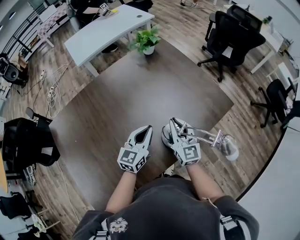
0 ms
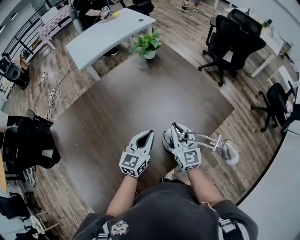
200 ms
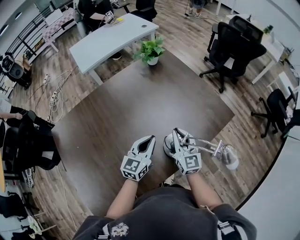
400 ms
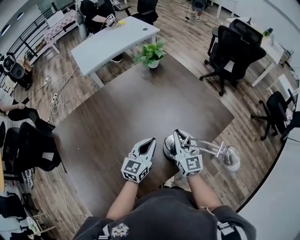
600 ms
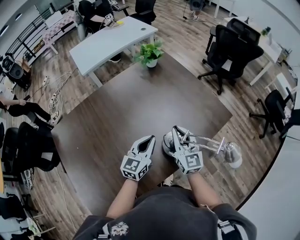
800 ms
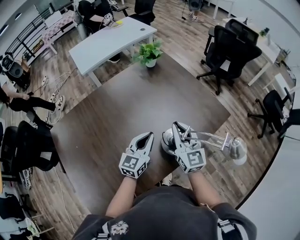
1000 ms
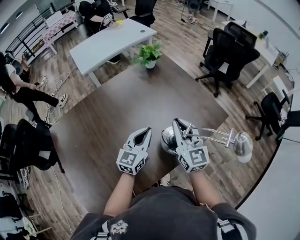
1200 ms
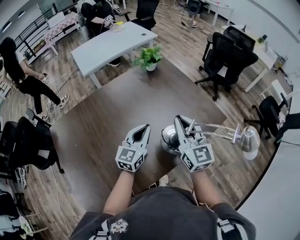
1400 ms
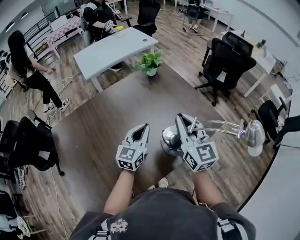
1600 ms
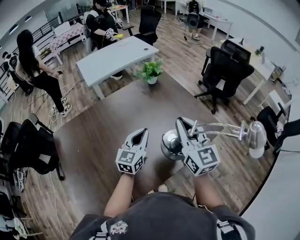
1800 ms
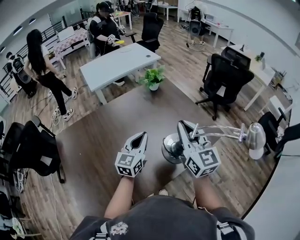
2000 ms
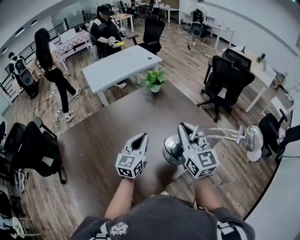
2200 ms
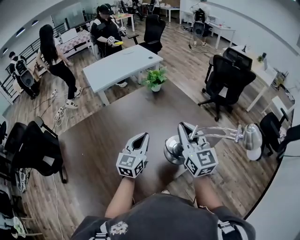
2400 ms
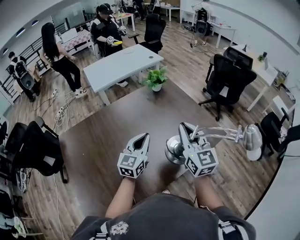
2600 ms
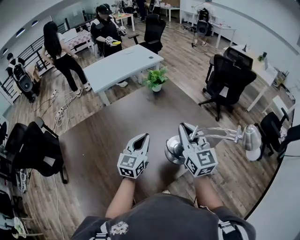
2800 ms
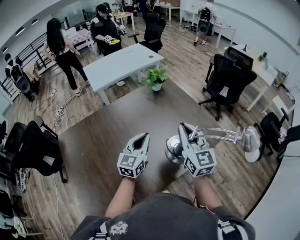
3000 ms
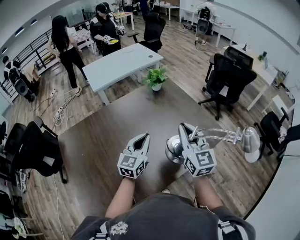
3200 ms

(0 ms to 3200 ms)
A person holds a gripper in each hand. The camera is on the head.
0 ms - 1600 ms: The left gripper heads upward, covering some 10 cm; the right gripper is displaced upward by about 20 cm.
1600 ms - 3200 ms: There are only small adjustments of the grippers.

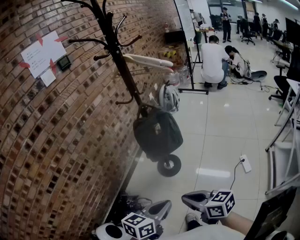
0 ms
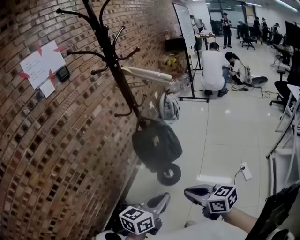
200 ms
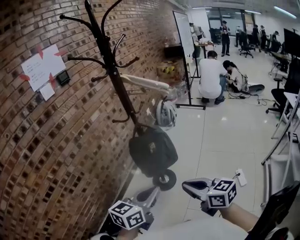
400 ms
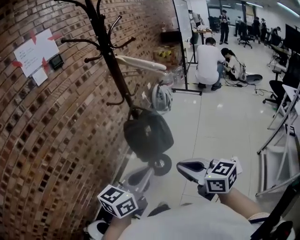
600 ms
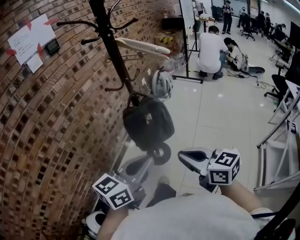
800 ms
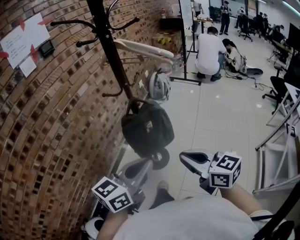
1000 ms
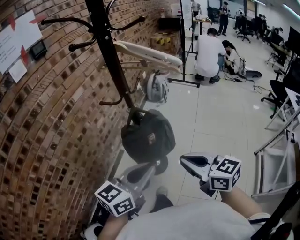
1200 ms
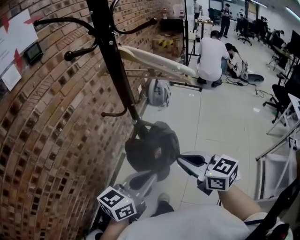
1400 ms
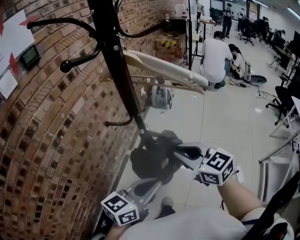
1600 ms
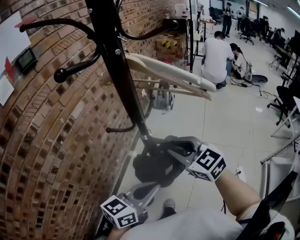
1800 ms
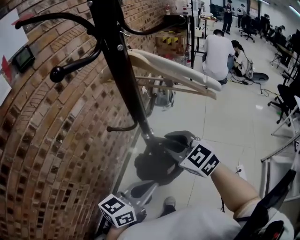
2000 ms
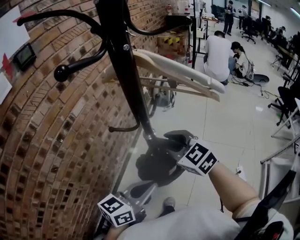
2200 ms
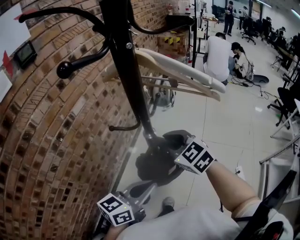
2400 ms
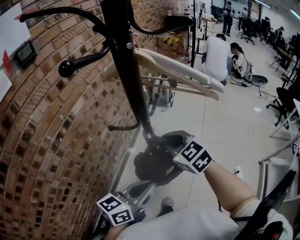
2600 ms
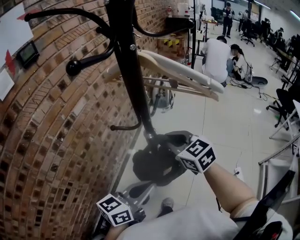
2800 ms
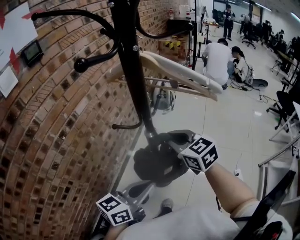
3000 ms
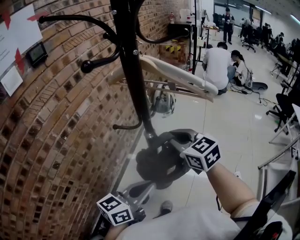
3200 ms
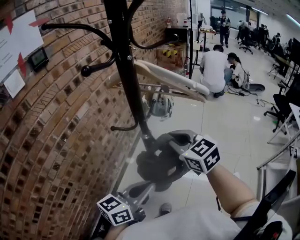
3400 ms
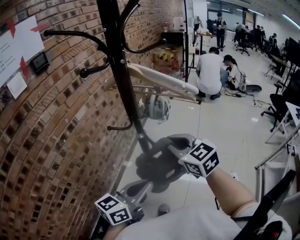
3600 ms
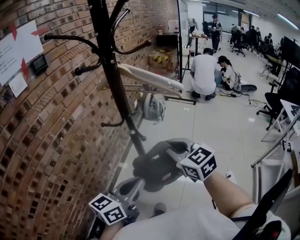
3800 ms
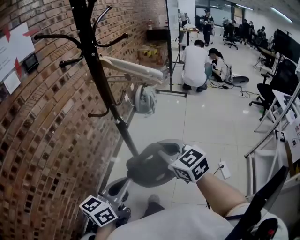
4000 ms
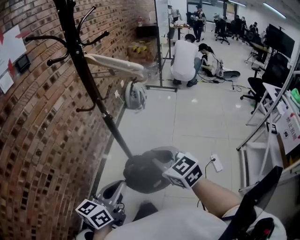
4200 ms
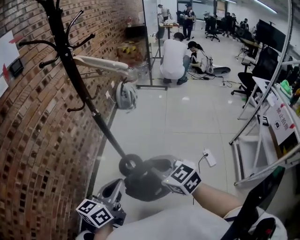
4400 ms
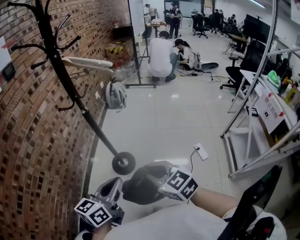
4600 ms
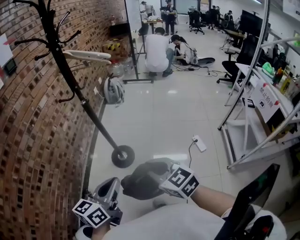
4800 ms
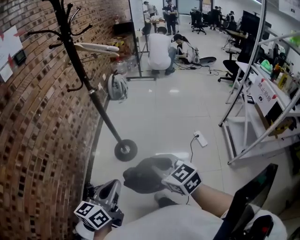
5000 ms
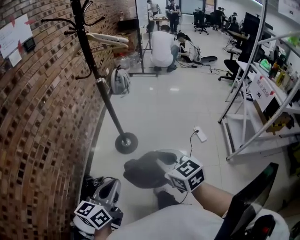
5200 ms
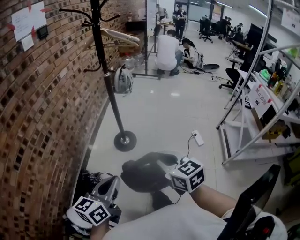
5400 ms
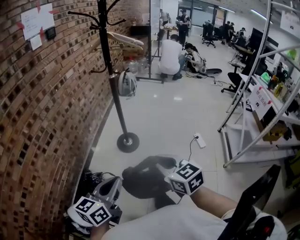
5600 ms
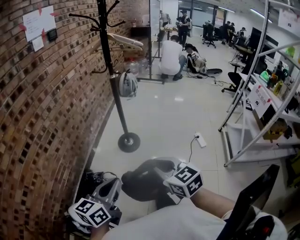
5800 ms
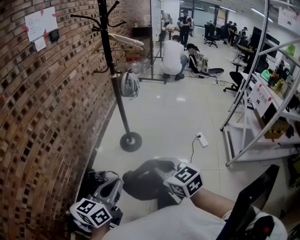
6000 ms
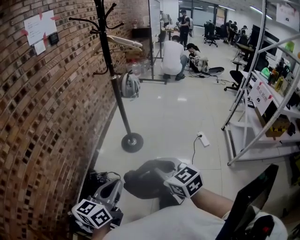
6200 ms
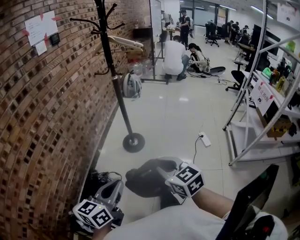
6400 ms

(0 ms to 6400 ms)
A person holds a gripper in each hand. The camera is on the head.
0 ms - 1600 ms: Both grippers move forward, some 35 cm. The right gripper swivels roughly 30 degrees.
1600 ms - 3200 ms: The right gripper is displaced forward by roughly 10 cm, and opens, then closes again.
3200 ms - 4800 ms: The right gripper moves backward, about 40 cm. Meanwhile the left gripper moves backward, some 25 cm.
4800 ms - 6400 ms: The left gripper is displaced backward and to the left by roughly 25 cm, while the right gripper is displaced backward by approximately 20 cm.

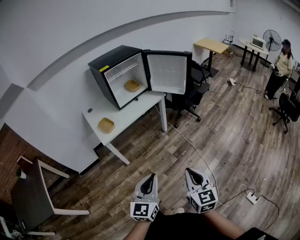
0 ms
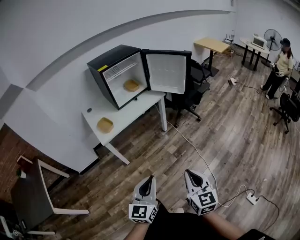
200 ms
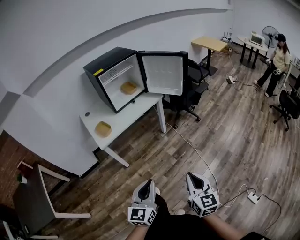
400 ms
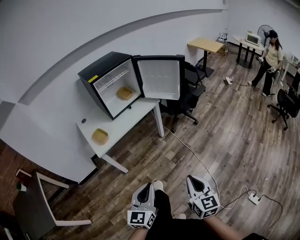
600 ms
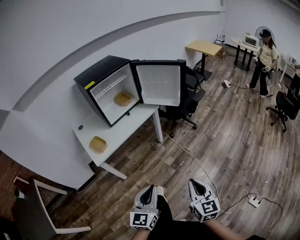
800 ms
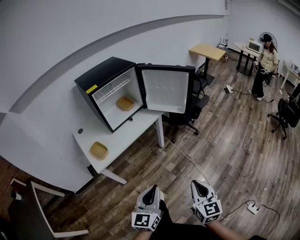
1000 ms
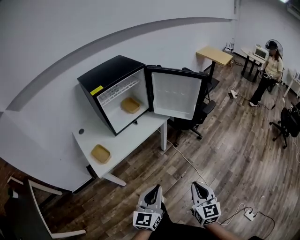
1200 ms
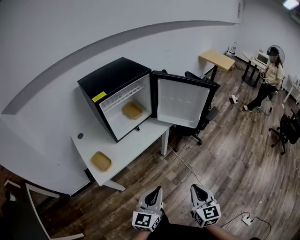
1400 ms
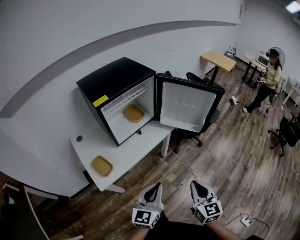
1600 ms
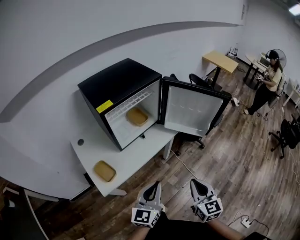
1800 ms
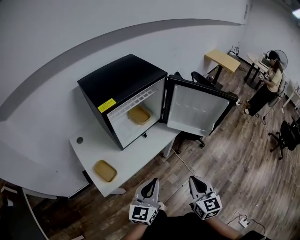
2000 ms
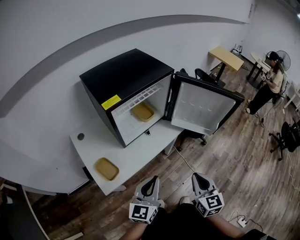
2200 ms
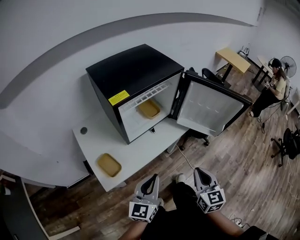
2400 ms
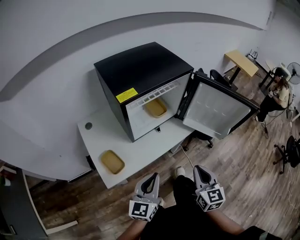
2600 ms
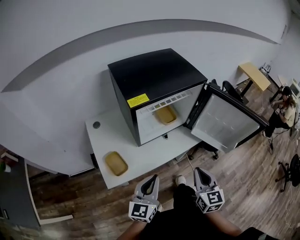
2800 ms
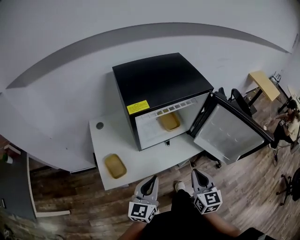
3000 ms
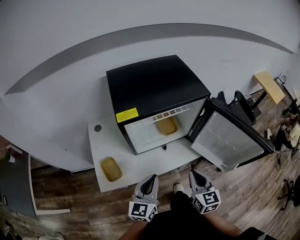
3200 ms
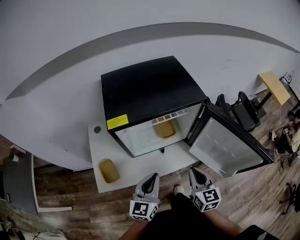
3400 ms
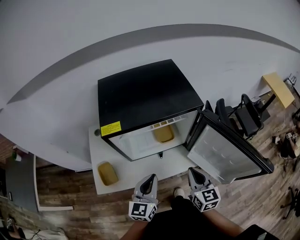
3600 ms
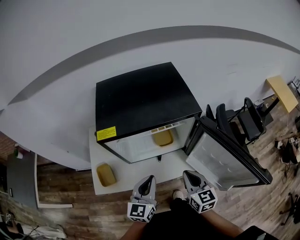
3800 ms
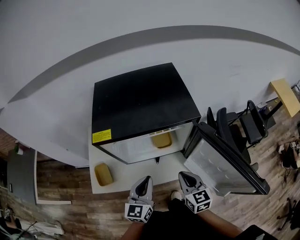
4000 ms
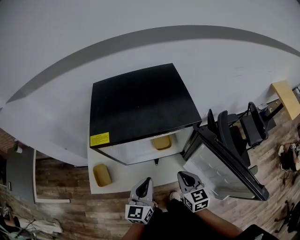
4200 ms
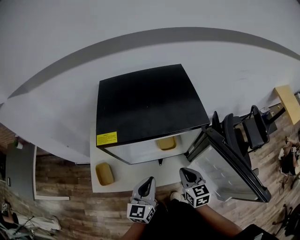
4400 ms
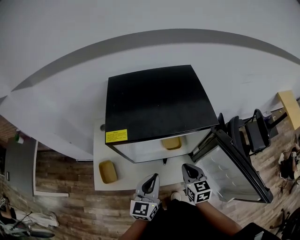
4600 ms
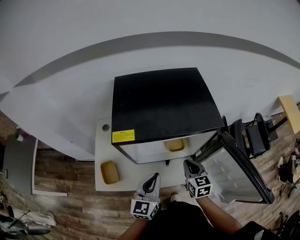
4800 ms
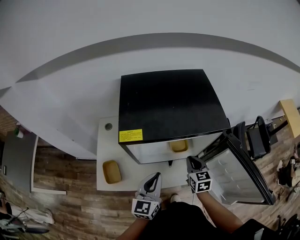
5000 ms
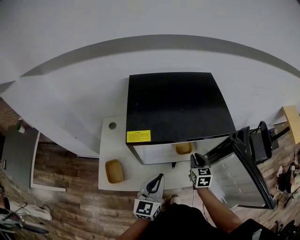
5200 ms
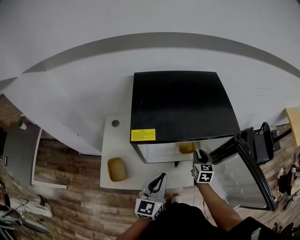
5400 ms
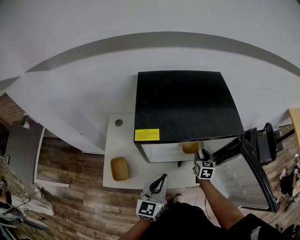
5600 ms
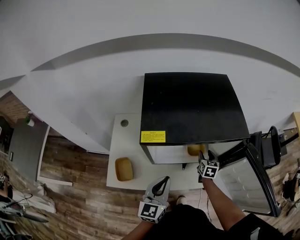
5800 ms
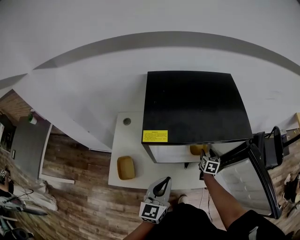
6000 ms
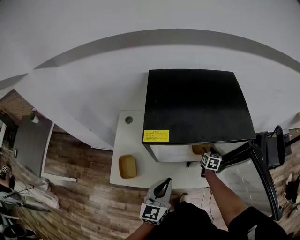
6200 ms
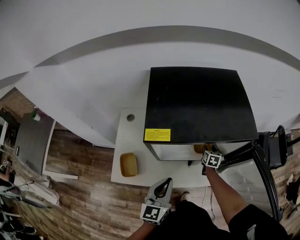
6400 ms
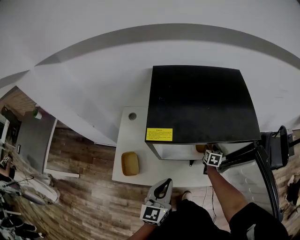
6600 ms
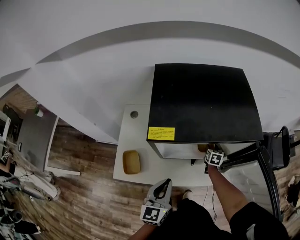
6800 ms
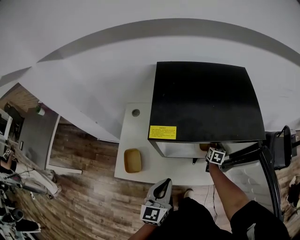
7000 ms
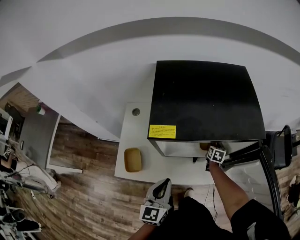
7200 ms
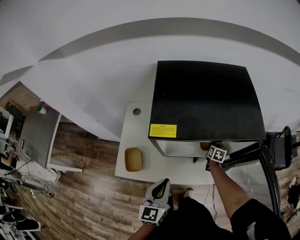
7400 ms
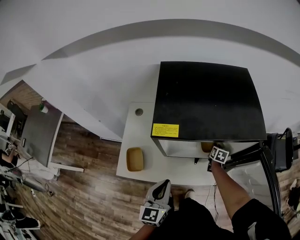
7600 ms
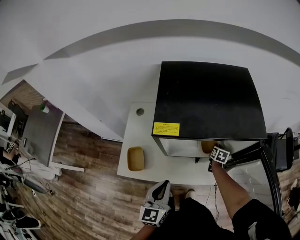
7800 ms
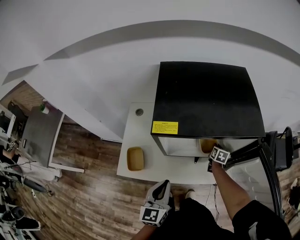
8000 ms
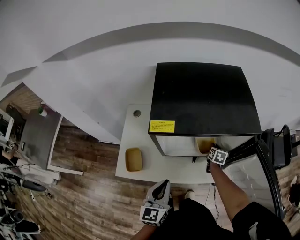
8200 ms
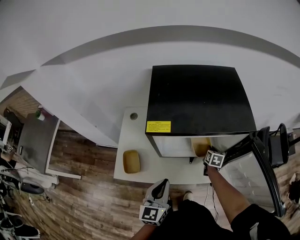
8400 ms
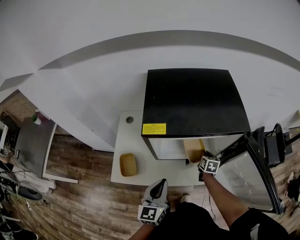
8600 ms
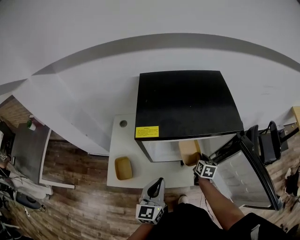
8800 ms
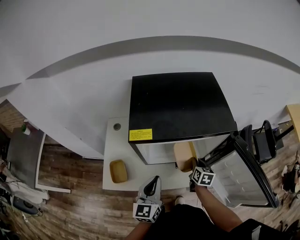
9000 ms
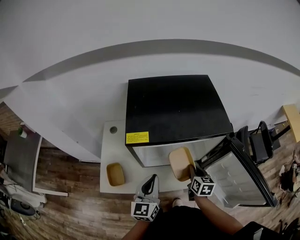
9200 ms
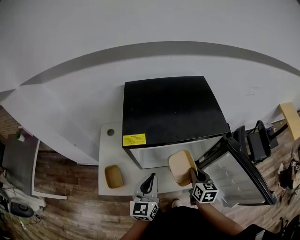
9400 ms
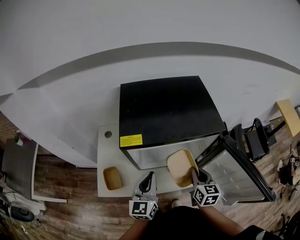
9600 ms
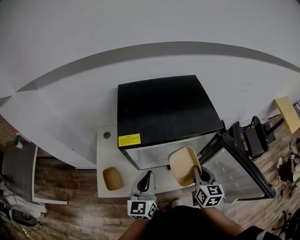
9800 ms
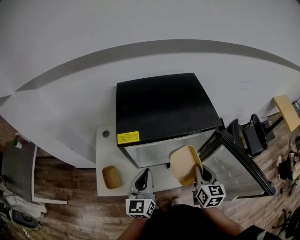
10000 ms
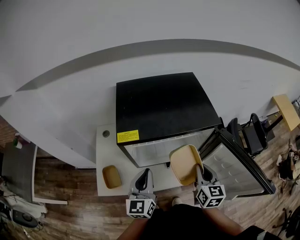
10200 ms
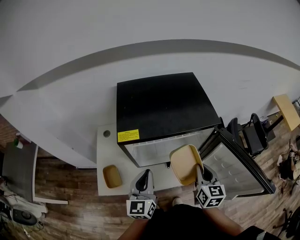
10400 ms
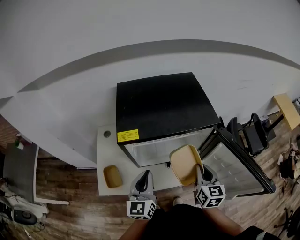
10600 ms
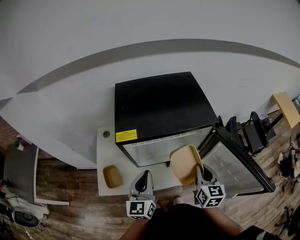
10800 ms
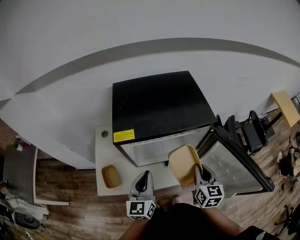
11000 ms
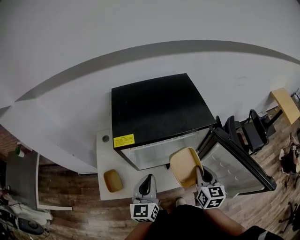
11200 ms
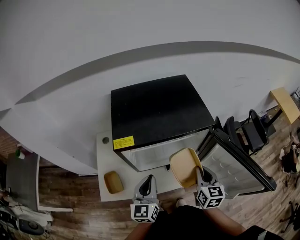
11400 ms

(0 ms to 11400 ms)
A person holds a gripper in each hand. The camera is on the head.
0 ms - 1400 ms: The two grippers go some 30 cm forward.
1400 ms - 2800 ms: Both grippers move forward and to the left, about 30 cm.
2800 ms - 4200 ms: The right gripper ends up some 25 cm from where it was, and turns by some 30 degrees; the left gripper ends up some 25 cm from where it was, and swivels roughly 20 degrees.
4200 ms - 5600 ms: The right gripper shifts approximately 20 cm forward and downward, and opens. The left gripper goes roughly 10 cm to the left.
5600 ms - 7200 ms: The right gripper is displaced downward and forward by approximately 15 cm.
7200 ms - 8600 ms: The right gripper shifts roughly 10 cm backward and upward, and closes.
8600 ms - 10000 ms: The left gripper travels forward and upward by some 10 cm. The right gripper heads upward and backward, covering about 25 cm, and rotates approximately 20 degrees.
10000 ms - 11400 ms: The grippers stay close to where they were, moving slightly.

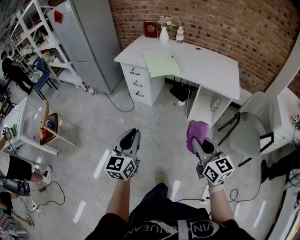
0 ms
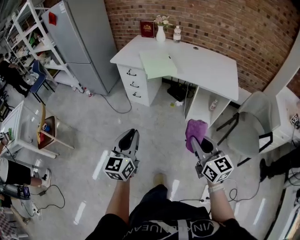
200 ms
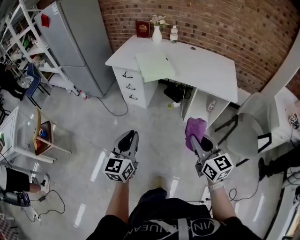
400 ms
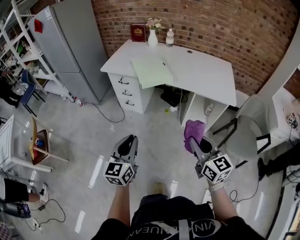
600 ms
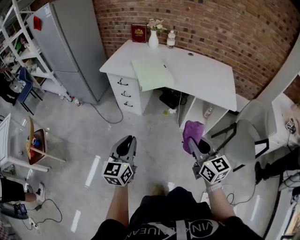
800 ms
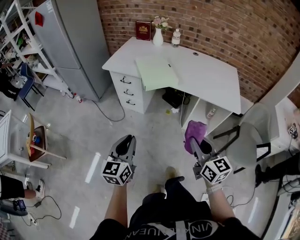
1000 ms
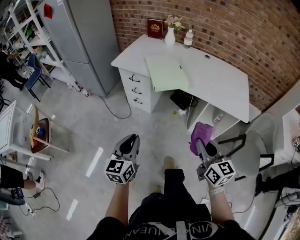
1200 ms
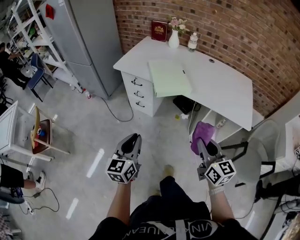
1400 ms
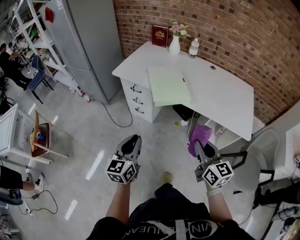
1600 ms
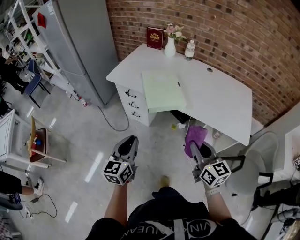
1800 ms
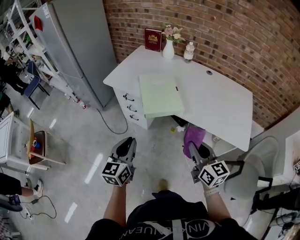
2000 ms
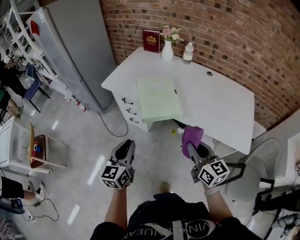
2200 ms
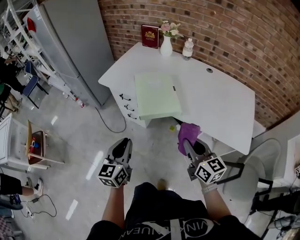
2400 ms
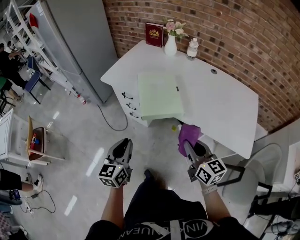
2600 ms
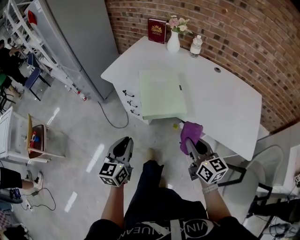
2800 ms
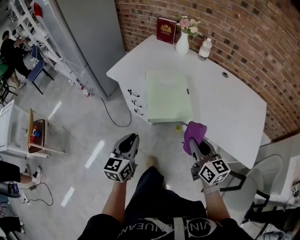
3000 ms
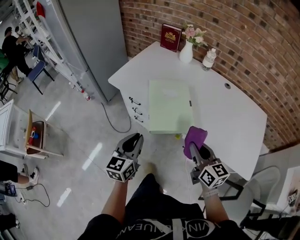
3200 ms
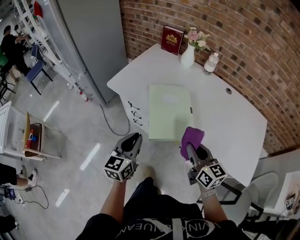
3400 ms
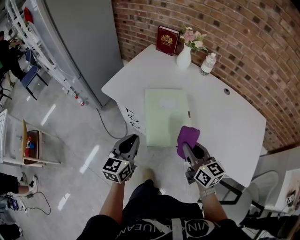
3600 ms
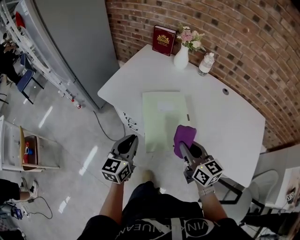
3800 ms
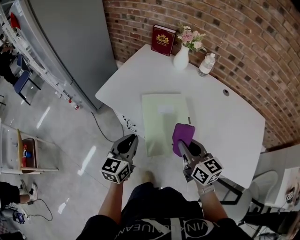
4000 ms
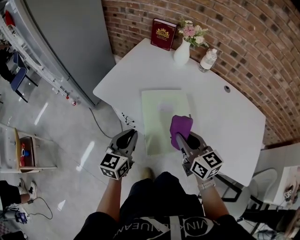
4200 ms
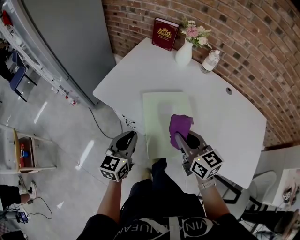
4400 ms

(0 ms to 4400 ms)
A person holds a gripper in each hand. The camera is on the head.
0 ms - 1400 ms: The two grippers go about 25 cm forward.
1400 ms - 3000 ms: The grippers both shift forward by some 20 cm.
3000 ms - 4400 ms: The two grippers go approximately 20 cm forward.
